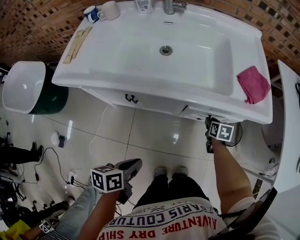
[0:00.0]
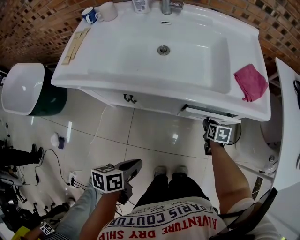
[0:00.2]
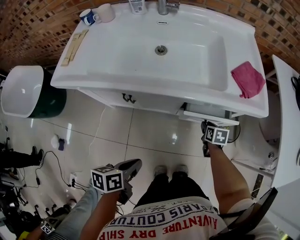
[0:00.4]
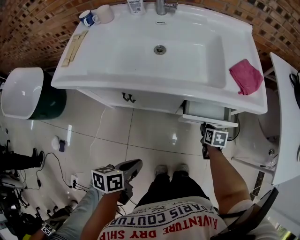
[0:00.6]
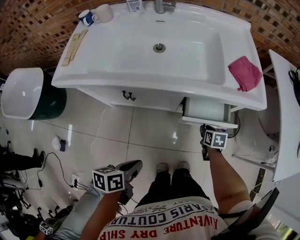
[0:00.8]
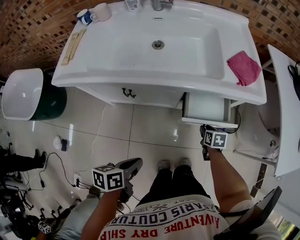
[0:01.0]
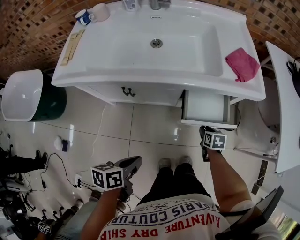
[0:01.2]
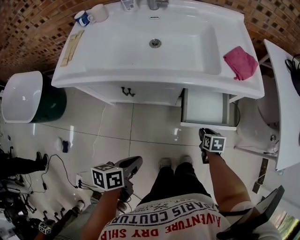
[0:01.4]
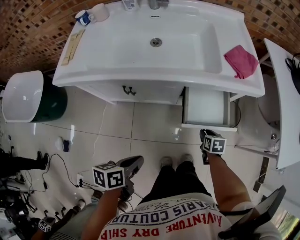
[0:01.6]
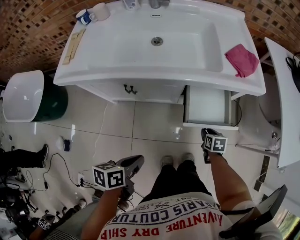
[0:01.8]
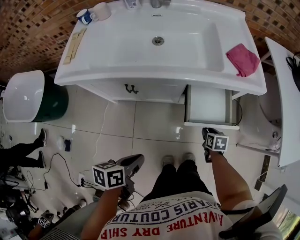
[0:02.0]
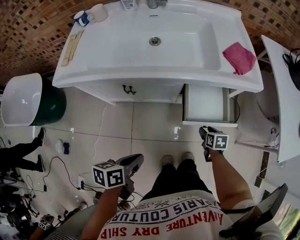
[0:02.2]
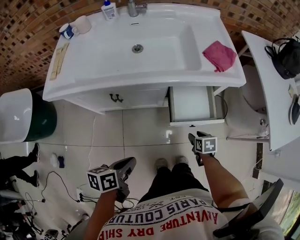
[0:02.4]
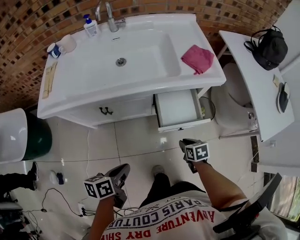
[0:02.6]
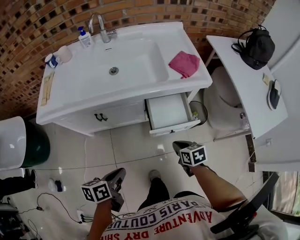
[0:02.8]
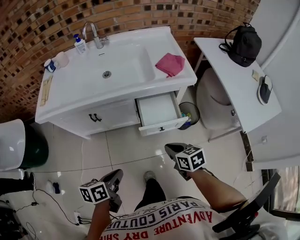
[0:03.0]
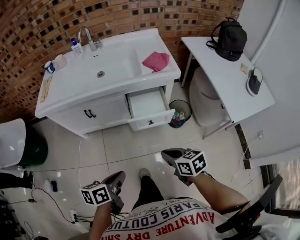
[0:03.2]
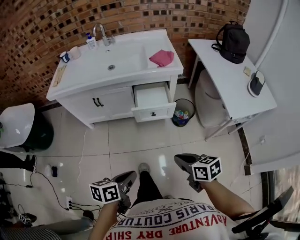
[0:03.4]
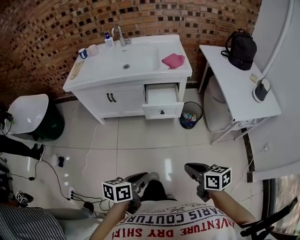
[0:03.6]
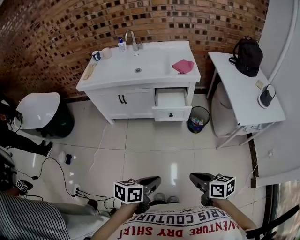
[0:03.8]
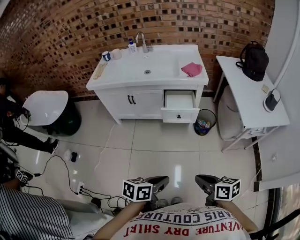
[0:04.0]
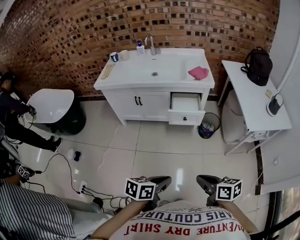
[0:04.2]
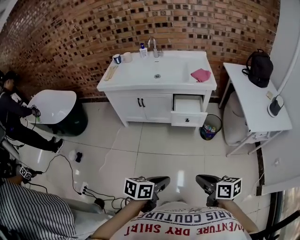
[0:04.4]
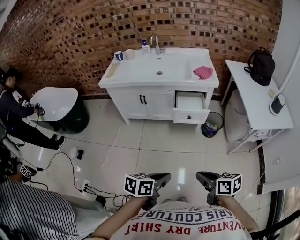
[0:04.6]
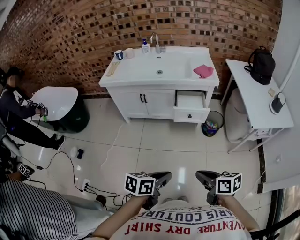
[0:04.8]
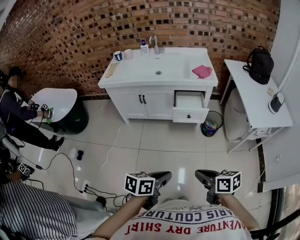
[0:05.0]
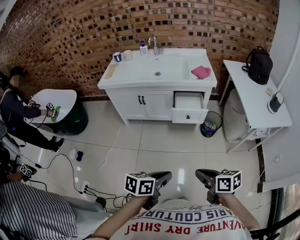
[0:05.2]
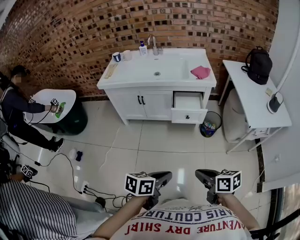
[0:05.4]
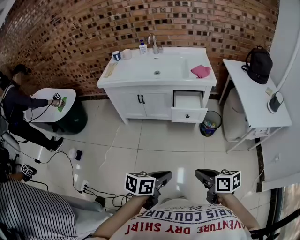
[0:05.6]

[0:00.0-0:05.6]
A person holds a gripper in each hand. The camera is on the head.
0:00.0 to 0:01.4: The right gripper is displaced backward by roughly 15 cm. Meanwhile the left gripper moves approximately 5 cm.
0:01.4 to 0:02.8: The right gripper travels upward and backward by approximately 15 cm, and closes its fingers. The left gripper moves upward, roughly 5 cm.
0:02.8 to 0:04.2: Both grippers are carried backward, roughly 40 cm. The right gripper heads upward, covering some 25 cm, and turns by some 30 degrees.
0:04.2 to 0:05.6: The grippers move only a little.

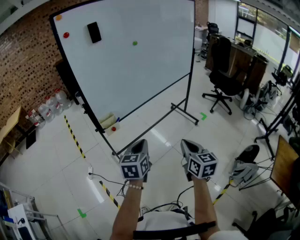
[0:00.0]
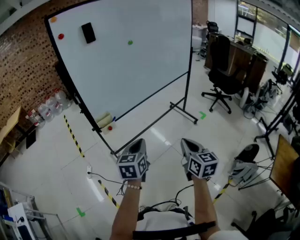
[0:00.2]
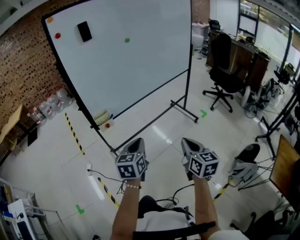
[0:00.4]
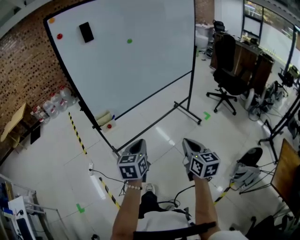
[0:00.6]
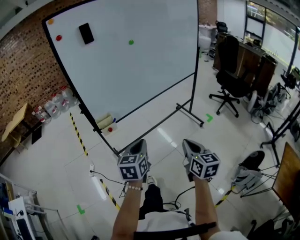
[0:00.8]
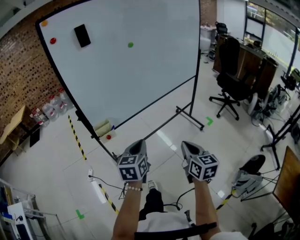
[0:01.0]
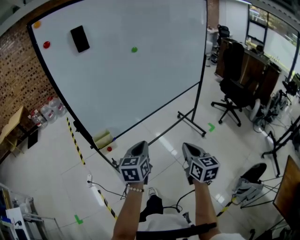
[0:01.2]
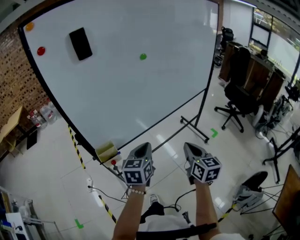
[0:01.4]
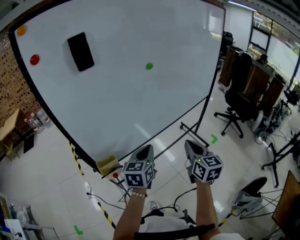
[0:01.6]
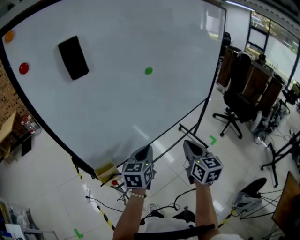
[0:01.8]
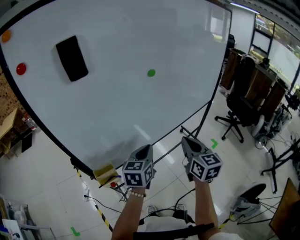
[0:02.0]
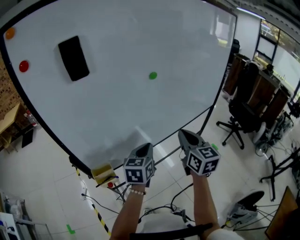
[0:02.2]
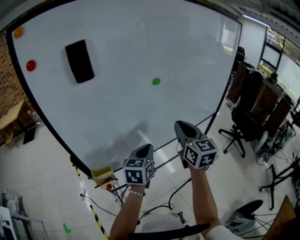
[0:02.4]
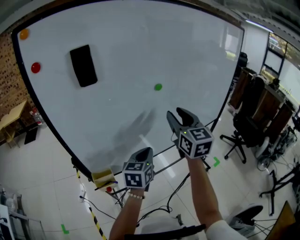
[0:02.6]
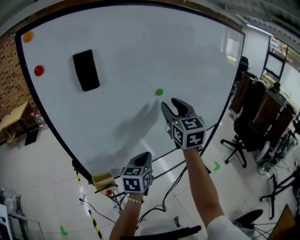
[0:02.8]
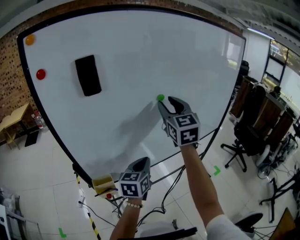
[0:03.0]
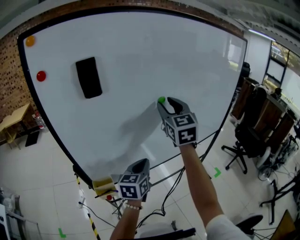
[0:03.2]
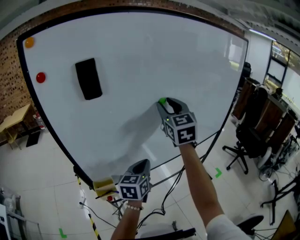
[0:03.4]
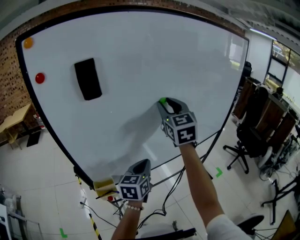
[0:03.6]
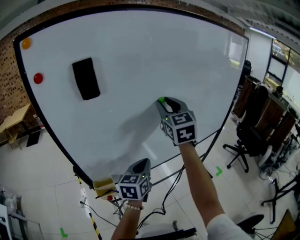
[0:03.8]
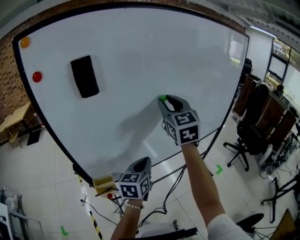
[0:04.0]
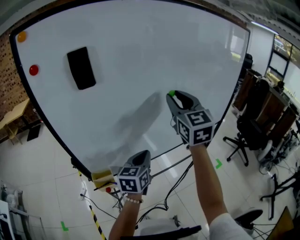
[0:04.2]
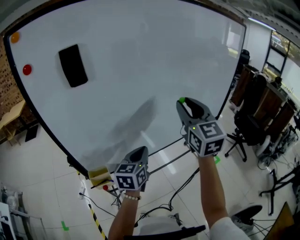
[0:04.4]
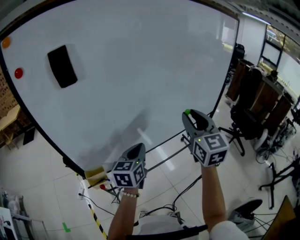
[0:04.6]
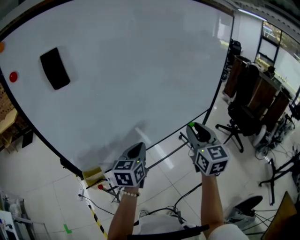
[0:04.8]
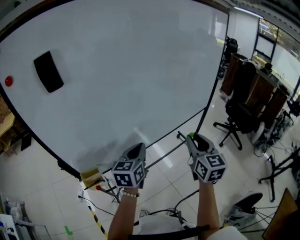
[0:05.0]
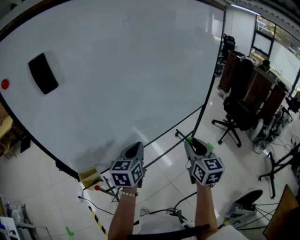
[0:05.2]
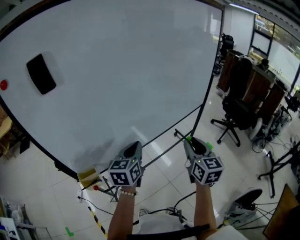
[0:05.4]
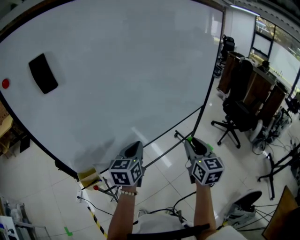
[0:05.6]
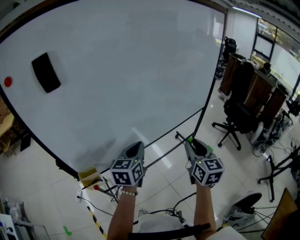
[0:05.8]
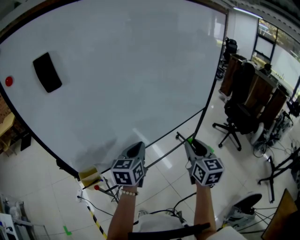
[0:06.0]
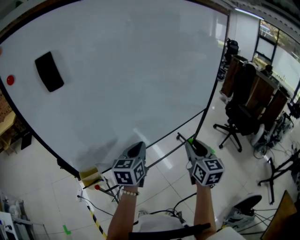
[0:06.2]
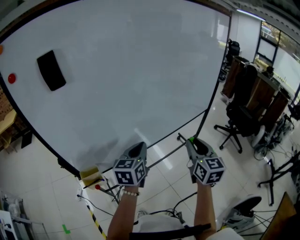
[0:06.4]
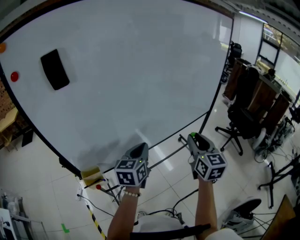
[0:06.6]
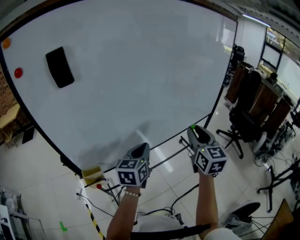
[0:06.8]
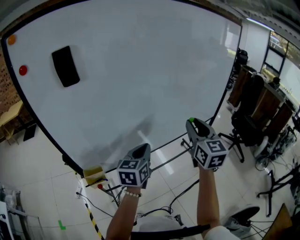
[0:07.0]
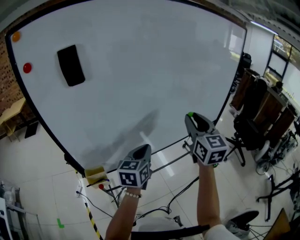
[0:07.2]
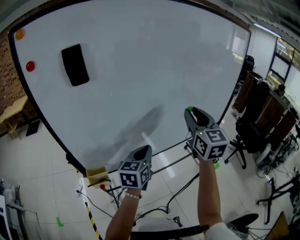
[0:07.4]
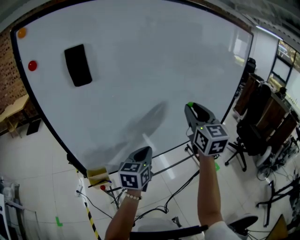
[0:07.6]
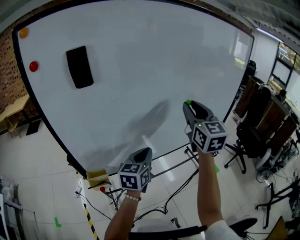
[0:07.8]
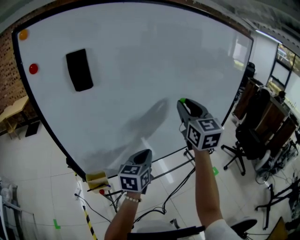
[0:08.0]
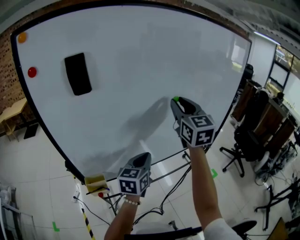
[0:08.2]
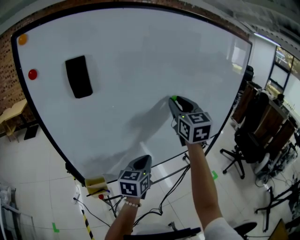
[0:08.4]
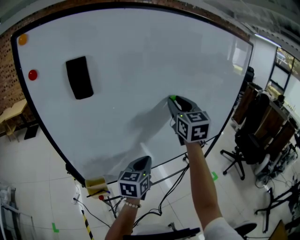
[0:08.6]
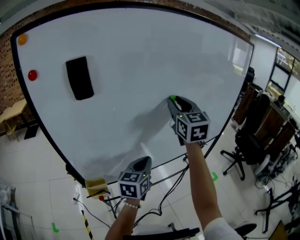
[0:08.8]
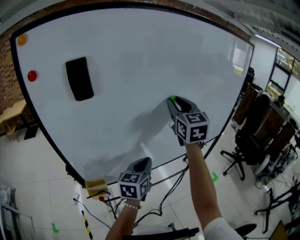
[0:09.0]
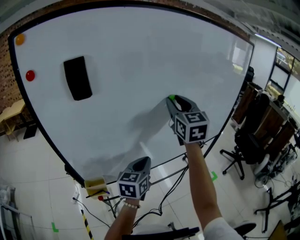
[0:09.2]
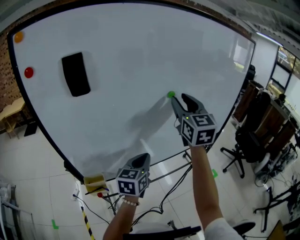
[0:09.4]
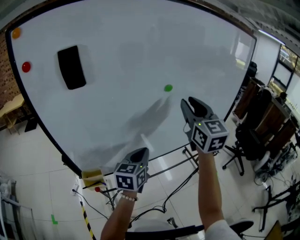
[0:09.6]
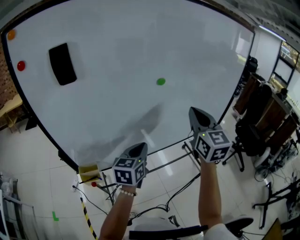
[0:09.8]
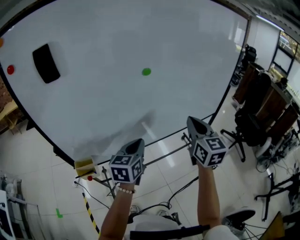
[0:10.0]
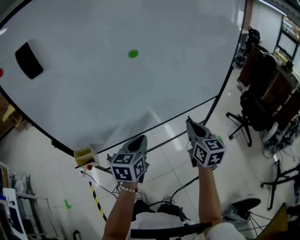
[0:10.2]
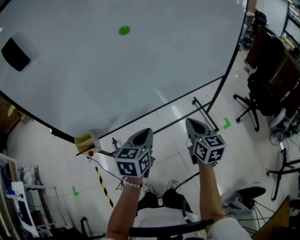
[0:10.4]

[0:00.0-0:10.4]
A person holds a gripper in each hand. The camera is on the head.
0:00.0 to 0:01.4: Both grippers move forward, roughly 30 cm.
0:01.4 to 0:03.0: The left gripper goes about 15 cm forward, while the right gripper moves forward, upward and to the left, roughly 40 cm, changes its angle by approximately 30 degrees, and opens up.
0:03.0 to 0:04.4: The right gripper shifts approximately 10 cm to the right and backward.
0:04.4 to 0:06.0: The left gripper shifts roughly 5 cm to the right. Meanwhile the right gripper heads downward, to the right and backward, covering some 25 cm, and swivels roughly 20 degrees.
0:06.0 to 0:07.4: The right gripper shifts approximately 20 cm upward, to the left and forward.
0:07.4 to 0:09.0: The right gripper heads forward, to the left and upward, covering about 15 cm.
0:09.0 to 0:10.4: The left gripper goes approximately 15 cm to the right, downward and backward. Meanwhile the right gripper moves downward, to the right and backward, approximately 40 cm, rotates some 30 degrees, and closes up.

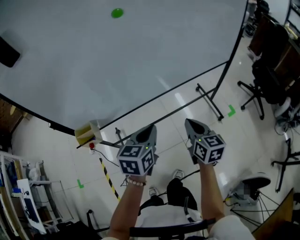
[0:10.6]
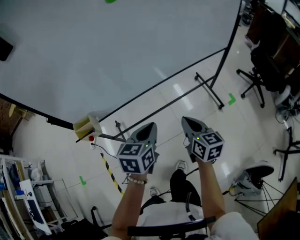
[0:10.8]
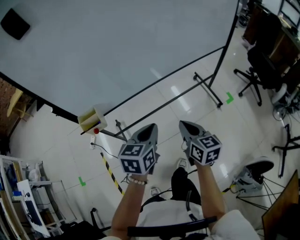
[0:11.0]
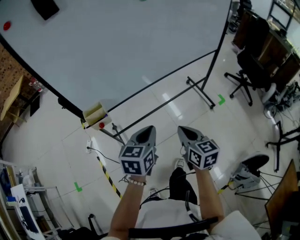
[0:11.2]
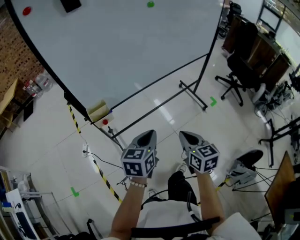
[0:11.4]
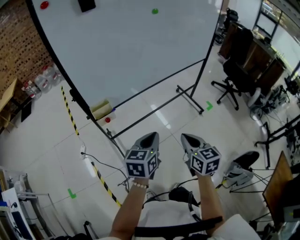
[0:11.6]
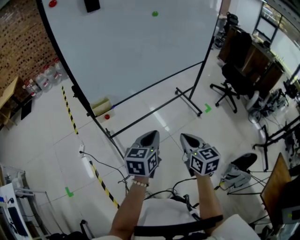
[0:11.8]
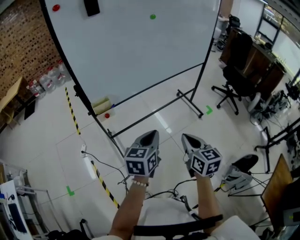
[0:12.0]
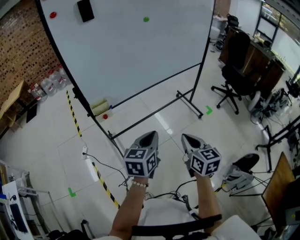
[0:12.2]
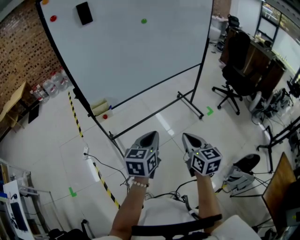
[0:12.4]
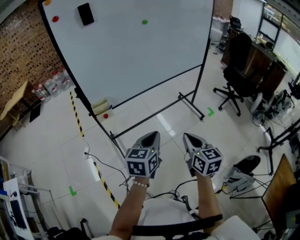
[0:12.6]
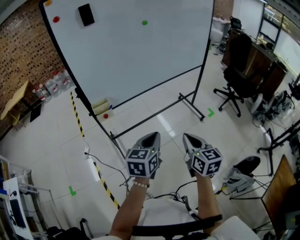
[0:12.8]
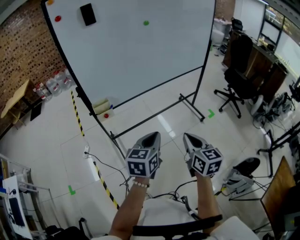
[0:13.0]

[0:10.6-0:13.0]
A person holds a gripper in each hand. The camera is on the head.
0:10.6 to 0:11.8: The two grippers go some 35 cm backward and to the left.
0:11.8 to 0:13.0: The grippers both shift to the right and backward by about 10 cm.

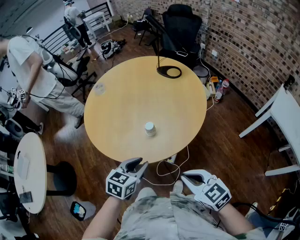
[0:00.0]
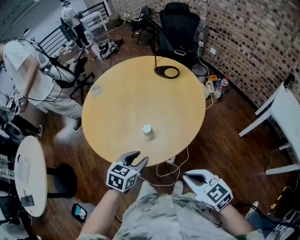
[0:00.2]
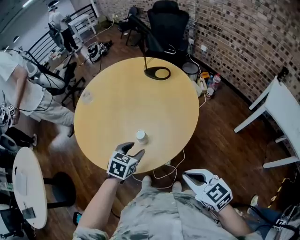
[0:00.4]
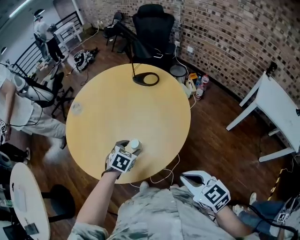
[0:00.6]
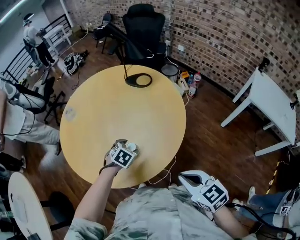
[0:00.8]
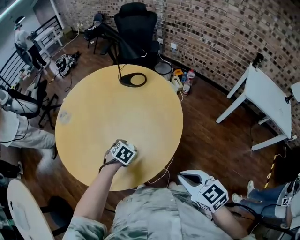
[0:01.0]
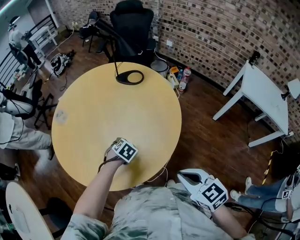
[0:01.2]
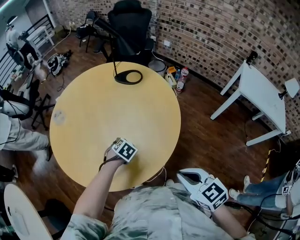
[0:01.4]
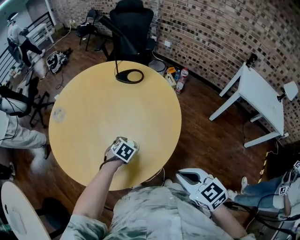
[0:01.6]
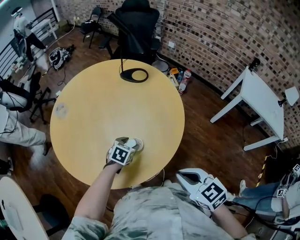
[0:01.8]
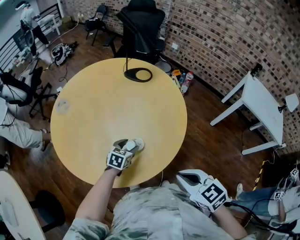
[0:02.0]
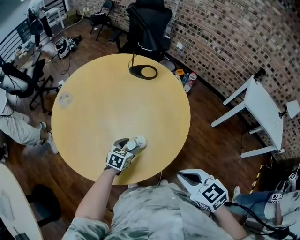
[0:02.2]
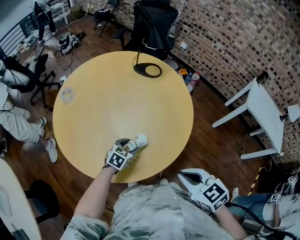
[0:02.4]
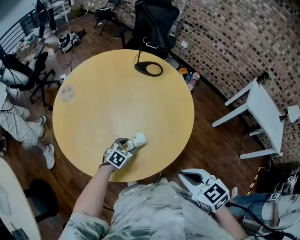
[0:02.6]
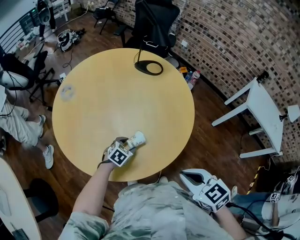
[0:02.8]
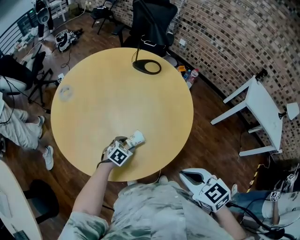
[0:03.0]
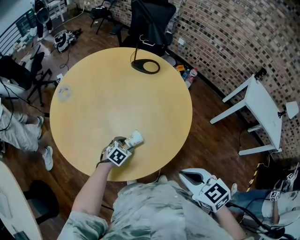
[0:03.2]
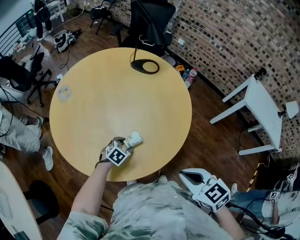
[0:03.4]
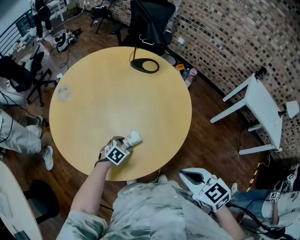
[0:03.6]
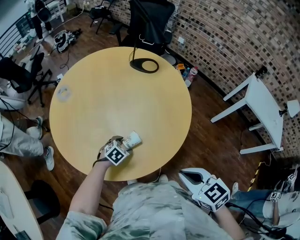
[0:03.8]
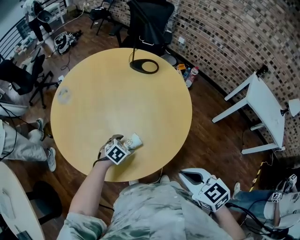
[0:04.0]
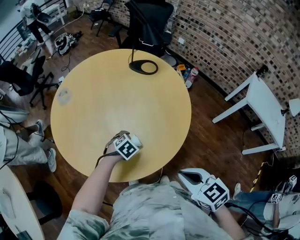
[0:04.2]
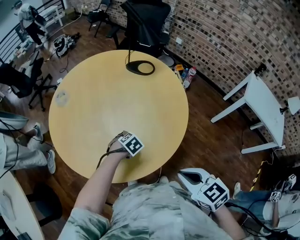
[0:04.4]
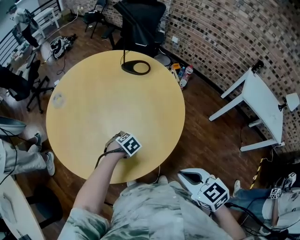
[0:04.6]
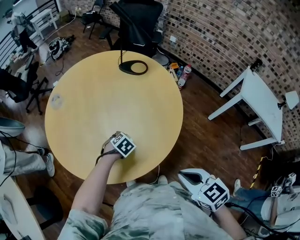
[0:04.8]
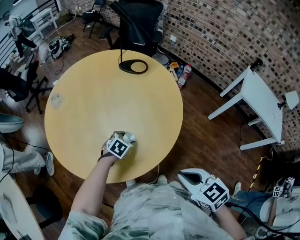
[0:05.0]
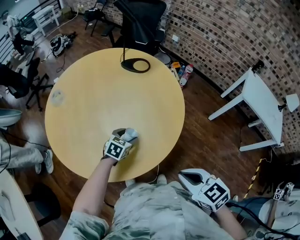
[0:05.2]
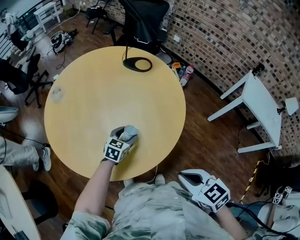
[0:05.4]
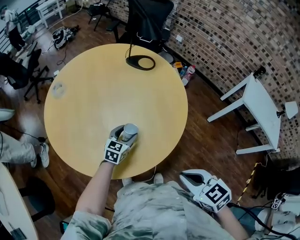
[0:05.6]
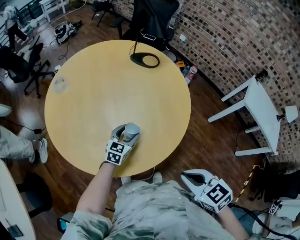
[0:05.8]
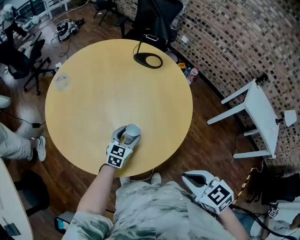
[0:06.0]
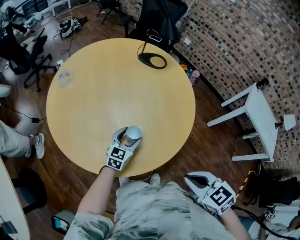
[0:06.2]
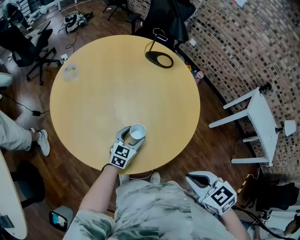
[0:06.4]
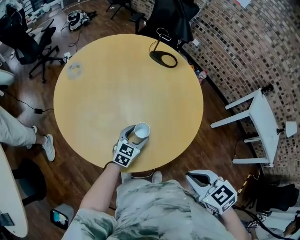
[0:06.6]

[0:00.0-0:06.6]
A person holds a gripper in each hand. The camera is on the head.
0:00.0 to 0:01.6: The left gripper changes place by some 30 cm, rotates about 40 degrees, and opens up. The right gripper shifts by approximately 10 cm, and rotates approximately 20 degrees.
0:01.6 to 0:03.2: The right gripper is displaced to the left by some 5 cm. Meanwhile the left gripper shifts approximately 10 cm to the left and downward.
0:03.2 to 0:05.0: The right gripper ends up about 5 cm from where it was. Meanwhile the left gripper shifts by roughly 10 cm.
0:05.0 to 0:06.6: Both grippers move to the left, some 5 cm. The left gripper points its fingers some 40 degrees further upward.
